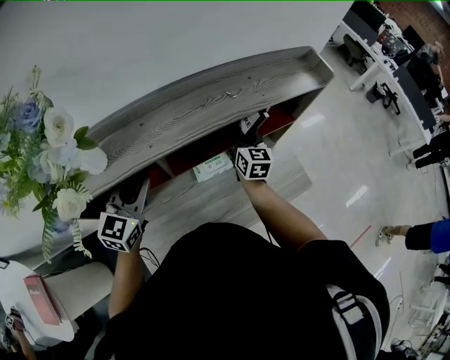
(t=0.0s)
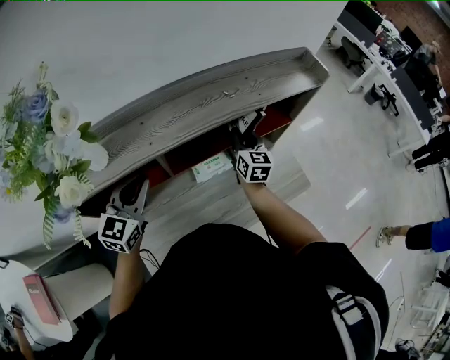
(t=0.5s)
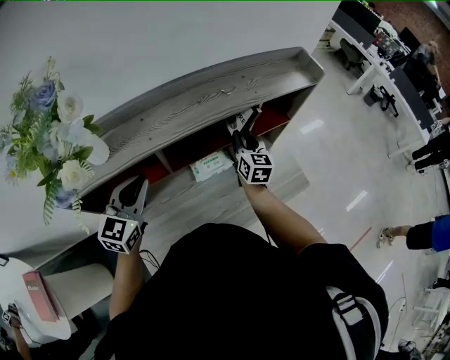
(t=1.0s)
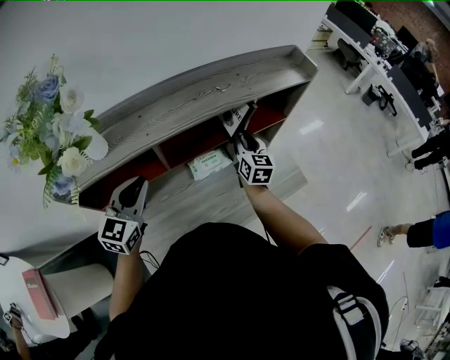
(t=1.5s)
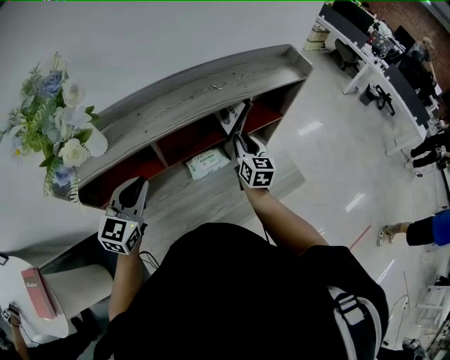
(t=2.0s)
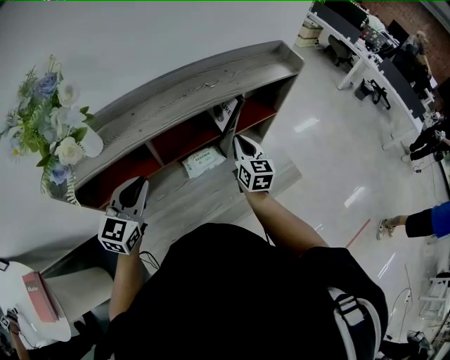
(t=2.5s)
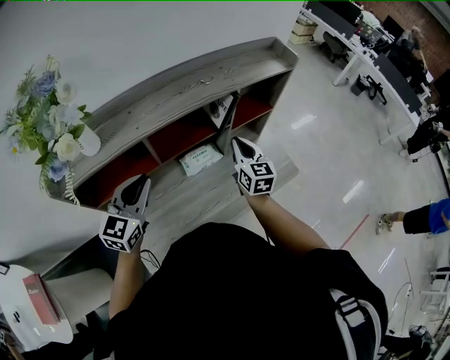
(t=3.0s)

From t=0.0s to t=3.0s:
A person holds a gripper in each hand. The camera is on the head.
From t=0.0s to t=1.5s: The right gripper moves backward, roughly 5 cm; the left gripper moves some 5 cm.
From t=1.5s to t=3.0s: The right gripper heads backward, covering approximately 5 cm, and closes.

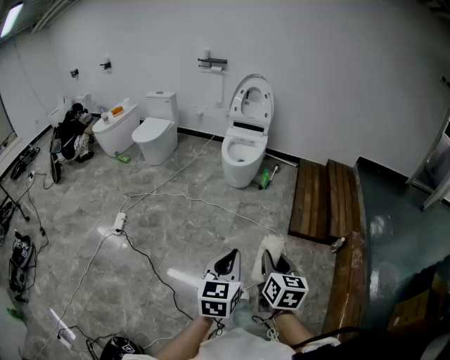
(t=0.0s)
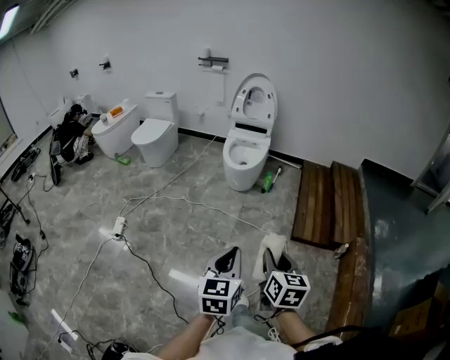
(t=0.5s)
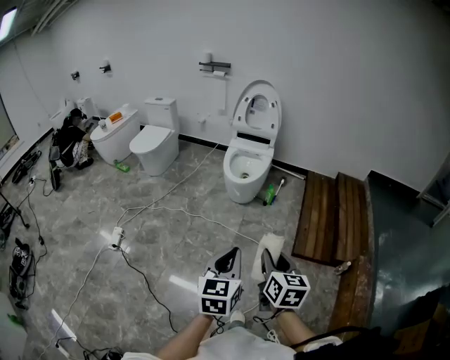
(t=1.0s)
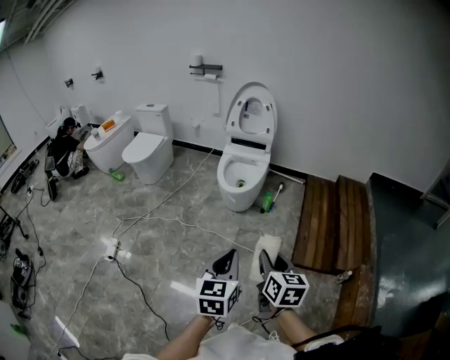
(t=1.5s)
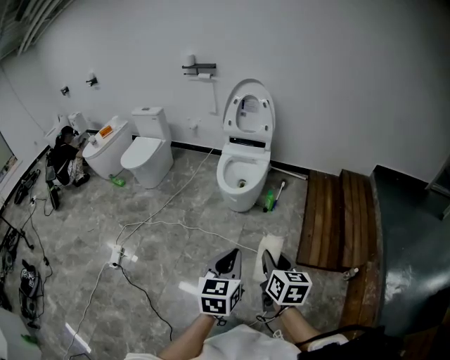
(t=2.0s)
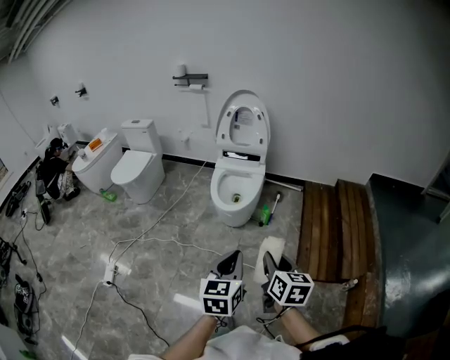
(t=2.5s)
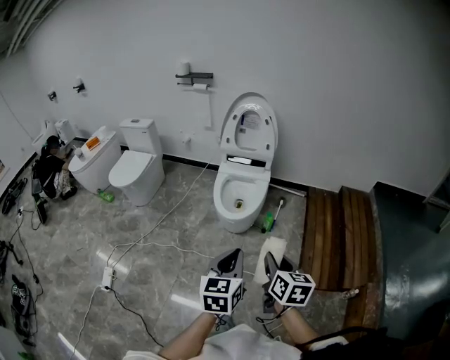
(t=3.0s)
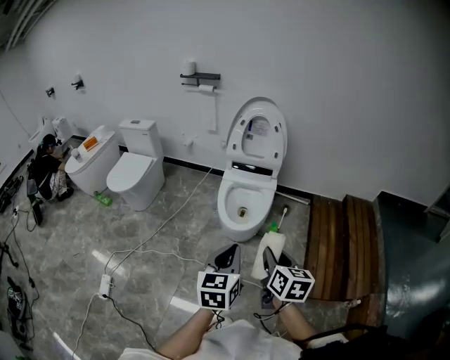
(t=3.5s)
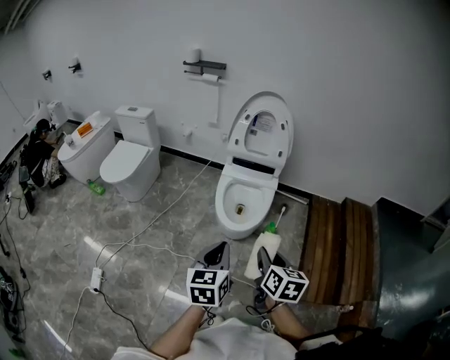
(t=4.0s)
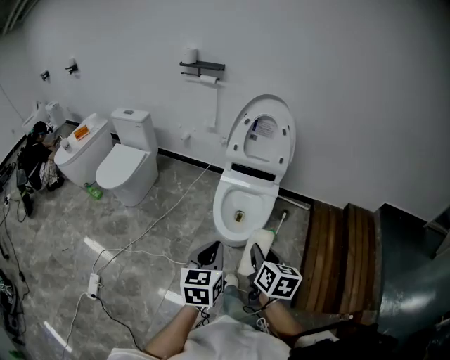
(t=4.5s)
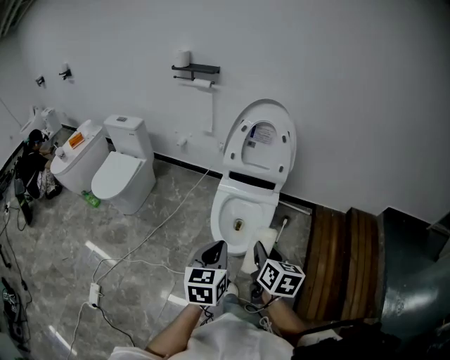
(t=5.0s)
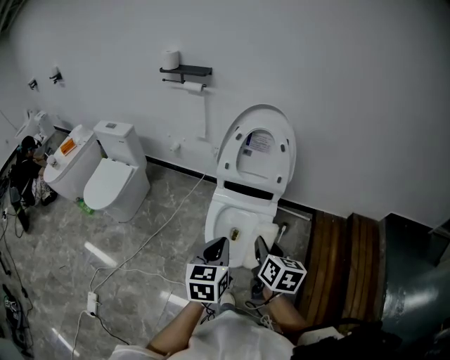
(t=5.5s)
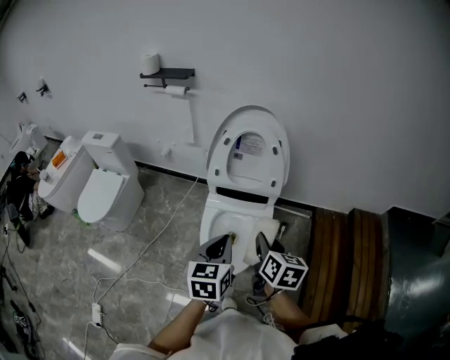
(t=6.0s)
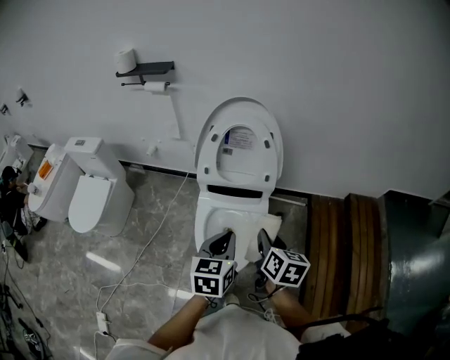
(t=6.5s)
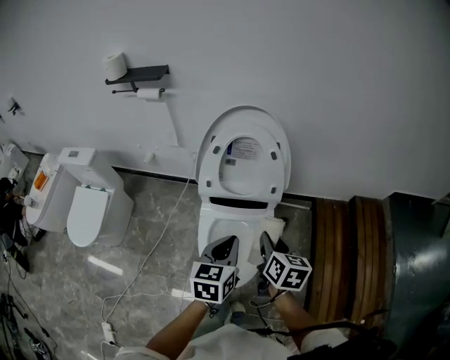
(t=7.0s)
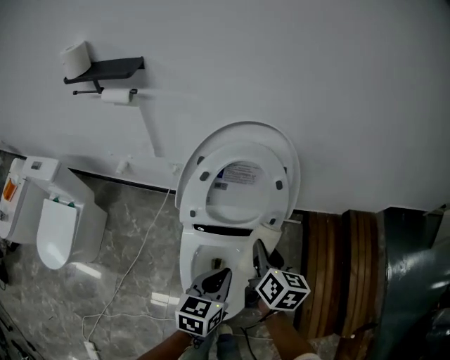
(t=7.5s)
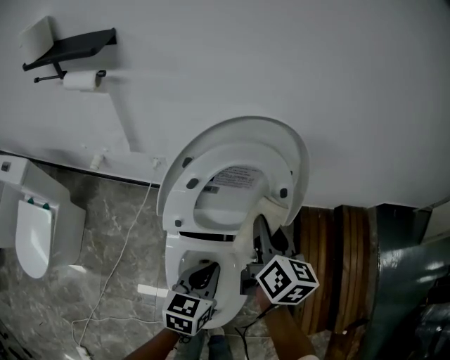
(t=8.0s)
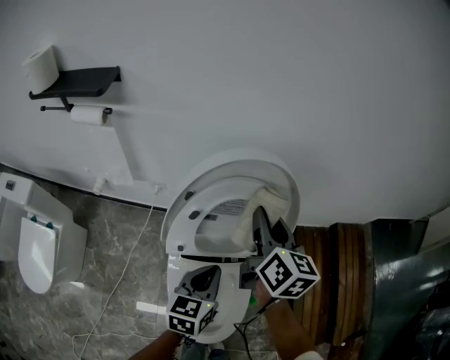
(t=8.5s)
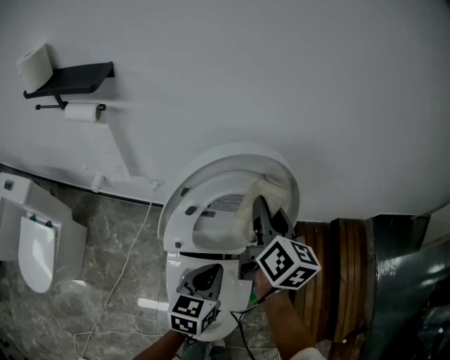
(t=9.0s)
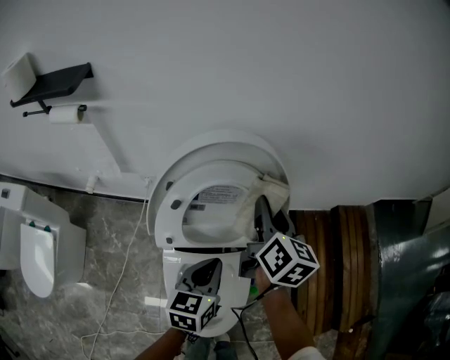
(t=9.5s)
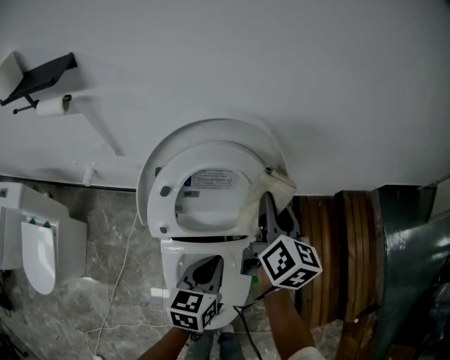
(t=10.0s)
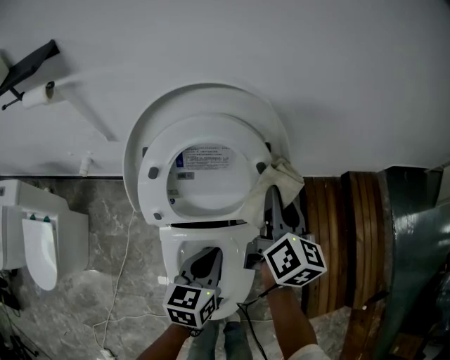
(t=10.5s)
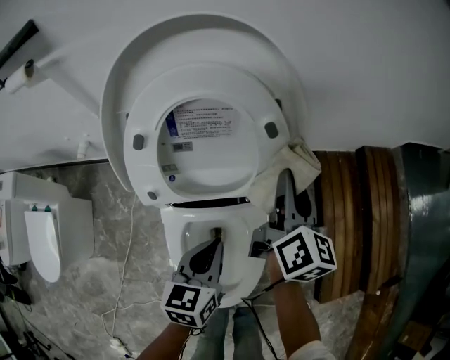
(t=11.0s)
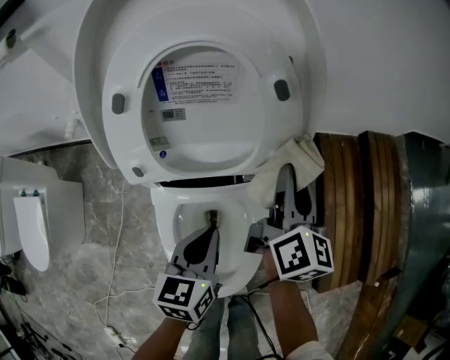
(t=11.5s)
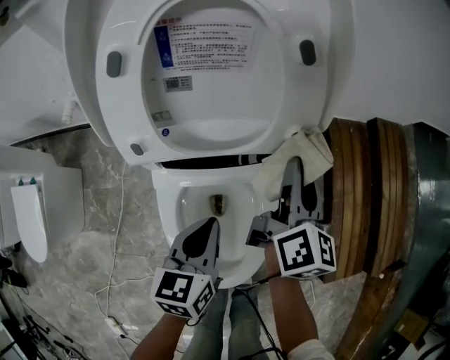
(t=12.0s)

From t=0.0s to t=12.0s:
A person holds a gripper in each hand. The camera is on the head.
From t=0.0s to t=2.0s: The two grippers go some 30 cm forward.
From t=2.0s to t=4.0s: The left gripper moves forward and to the left, about 35 cm, while the right gripper shifts approximately 30 cm forward.
From t=4.0s to t=6.0s: The grippers both shift forward by some 35 cm.
From t=6.0s to t=8.0s: The left gripper moves forward and downward, about 30 cm, and turns by some 20 degrees; the right gripper goes approximately 35 cm forward.
From t=8.0s to t=10.0s: The right gripper goes some 10 cm forward and to the right. The left gripper moves some 5 cm.
From t=10.0s to t=12.0s: Both grippers move downward and backward, roughly 15 cm.

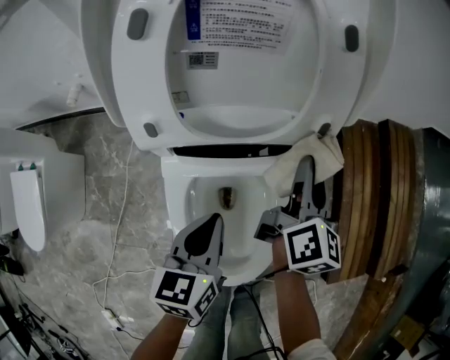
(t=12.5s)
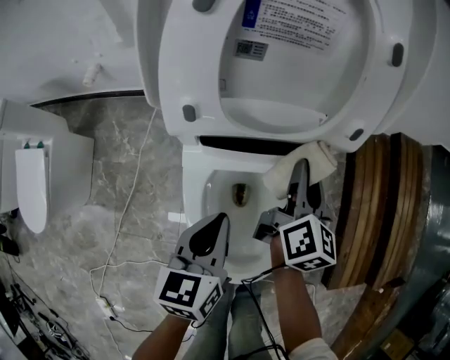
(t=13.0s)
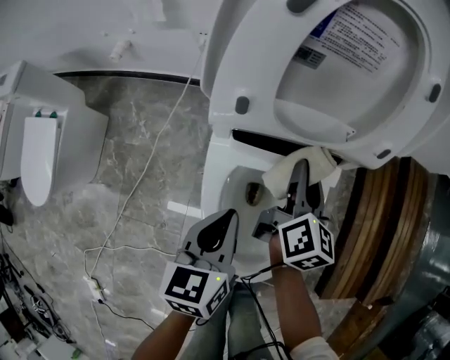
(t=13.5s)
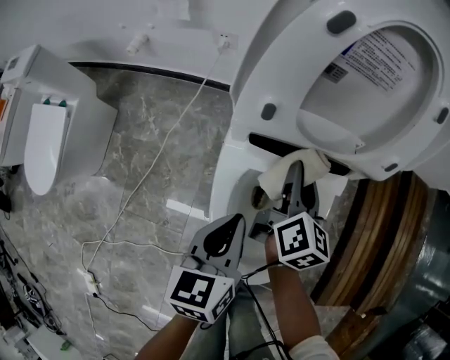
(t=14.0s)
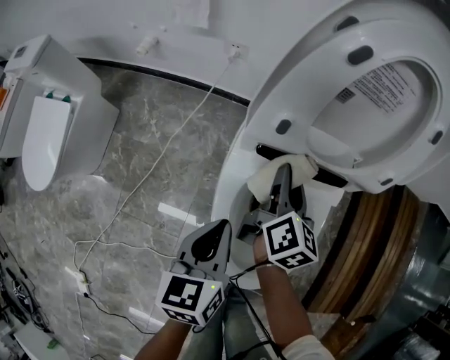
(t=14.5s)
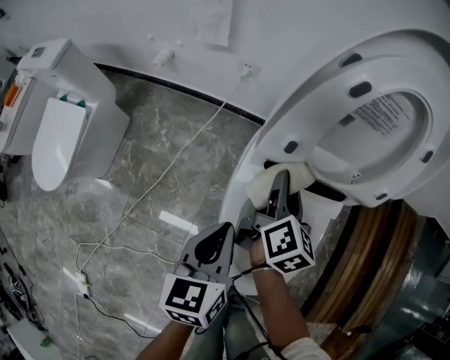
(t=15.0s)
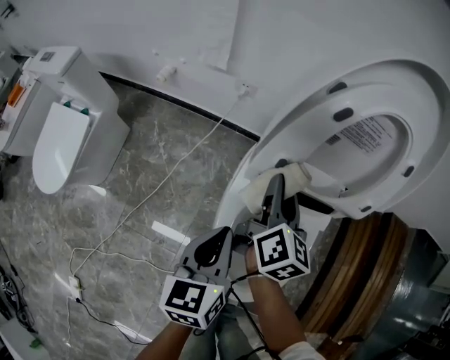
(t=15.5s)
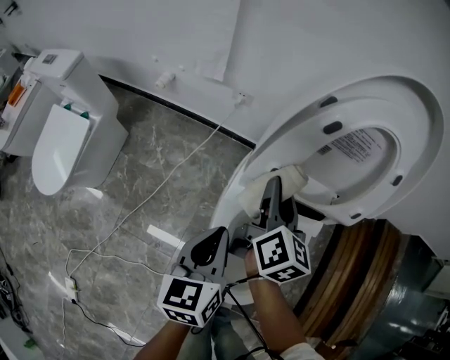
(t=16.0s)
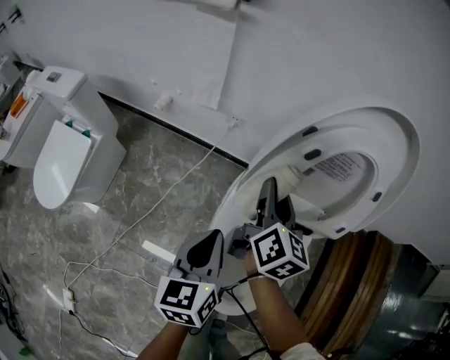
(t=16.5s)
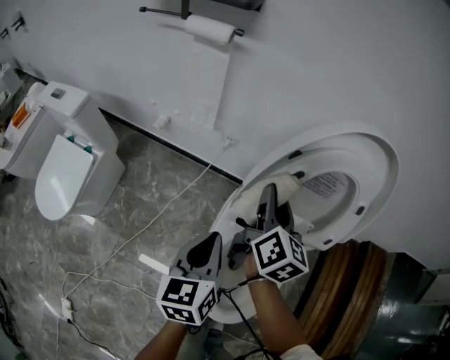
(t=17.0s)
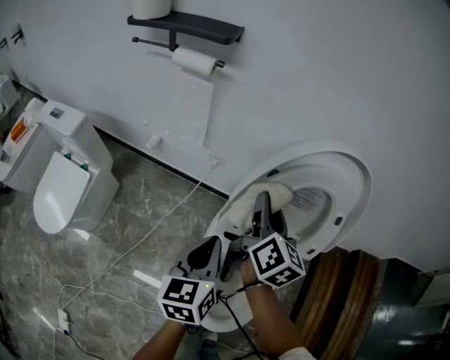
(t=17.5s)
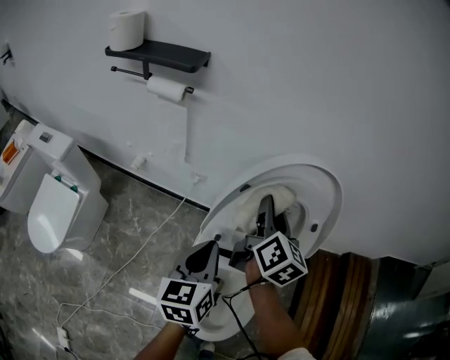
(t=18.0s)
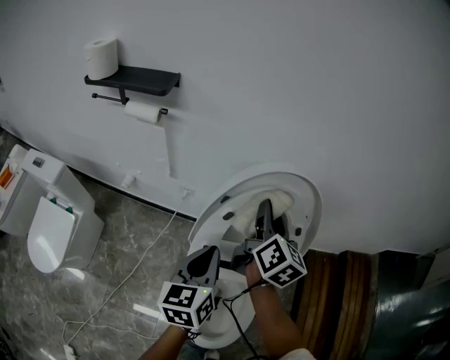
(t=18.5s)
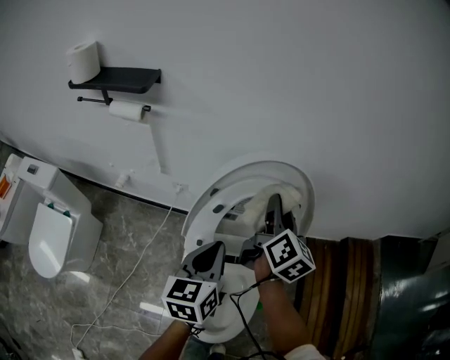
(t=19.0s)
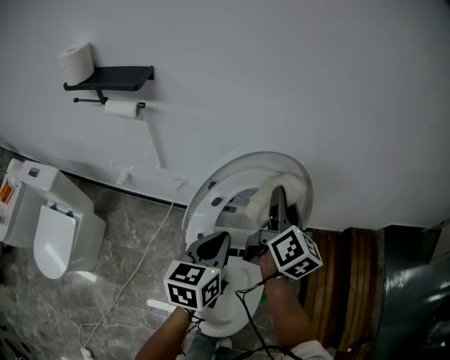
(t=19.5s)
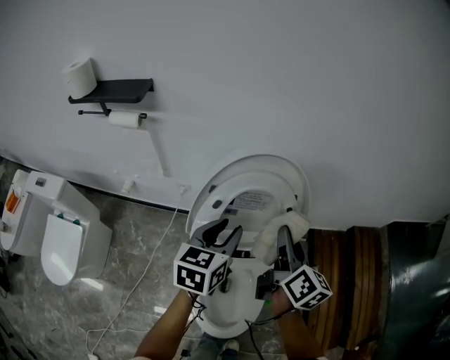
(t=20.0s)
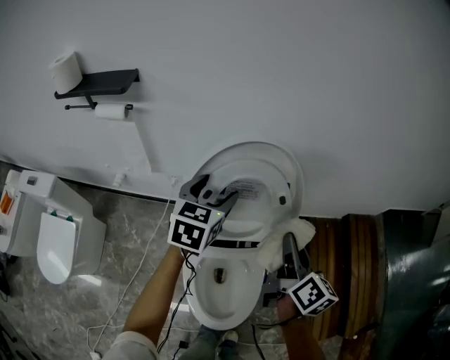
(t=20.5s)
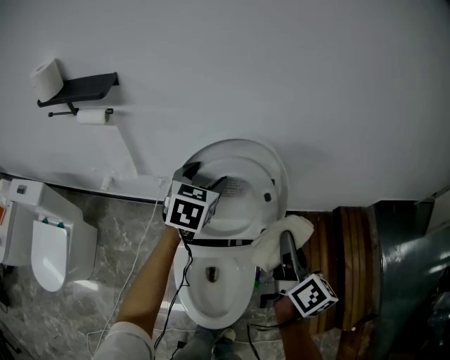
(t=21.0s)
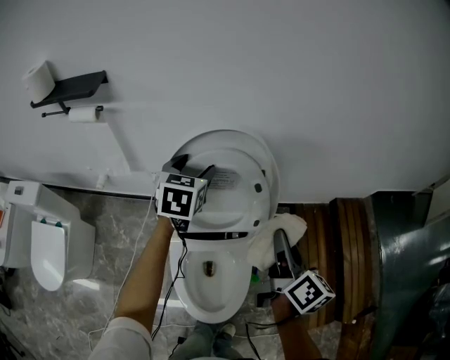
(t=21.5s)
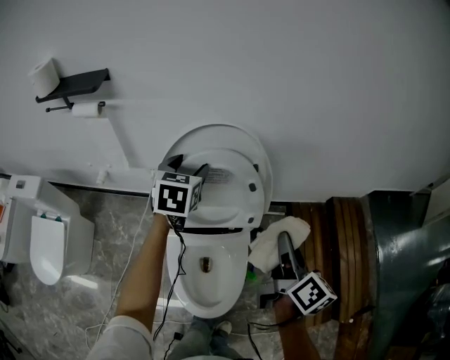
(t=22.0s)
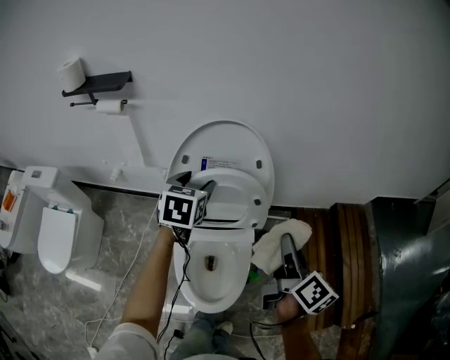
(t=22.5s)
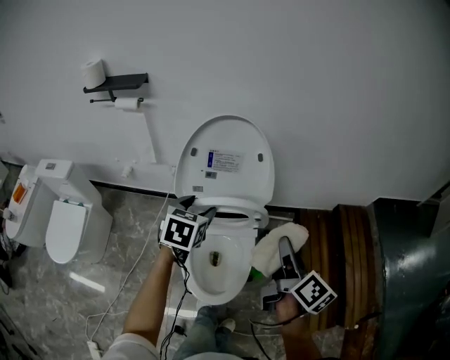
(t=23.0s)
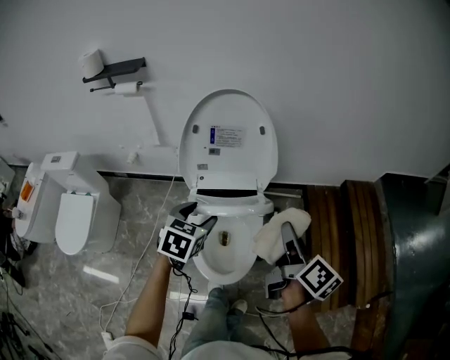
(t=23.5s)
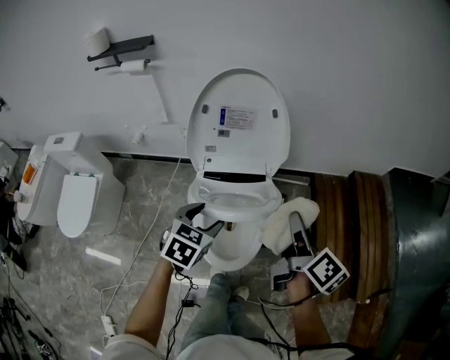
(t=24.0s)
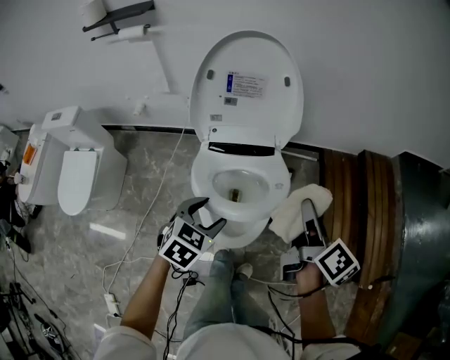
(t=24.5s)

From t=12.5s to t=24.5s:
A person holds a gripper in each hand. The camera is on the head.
From t=12.5s to t=14.5s: The left gripper travels to the left and backward by approximately 15 cm. The right gripper goes some 20 cm to the left, and turns by roughly 20 degrees.
From t=14.5s to t=16.5s: The left gripper goes about 15 cm upward and forward. The right gripper moves upward, some 15 cm.
From t=16.5s to t=18.5s: The left gripper shifts about 20 cm upward, forward and to the right; the right gripper travels upward, to the right and forward by about 20 cm.
From t=18.5s to t=20.5s: The left gripper moves forward and to the right, about 15 cm, swivels about 30 degrees, and opens its fingers. Meanwhile the right gripper moves to the right and backward, roughly 20 cm.
From t=20.5s to t=22.5s: The right gripper heads backward and to the right, covering approximately 10 cm; the left gripper goes roughly 5 cm backward.
From t=22.5s to t=24.5s: The right gripper moves backward and downward, approximately 15 cm. Meanwhile the left gripper heads backward and downward, covering some 35 cm, and changes its angle by approximately 30 degrees.
